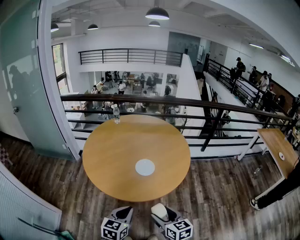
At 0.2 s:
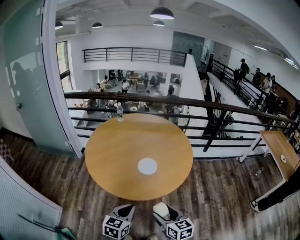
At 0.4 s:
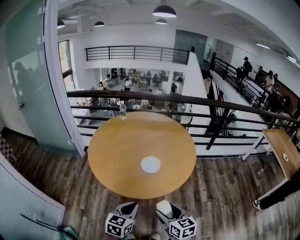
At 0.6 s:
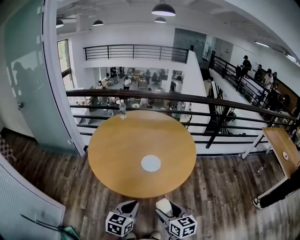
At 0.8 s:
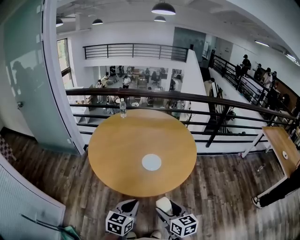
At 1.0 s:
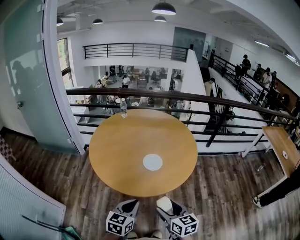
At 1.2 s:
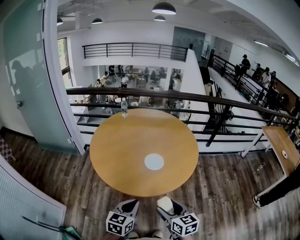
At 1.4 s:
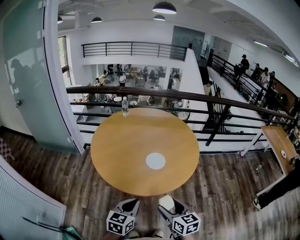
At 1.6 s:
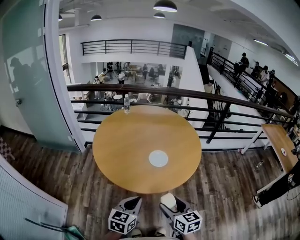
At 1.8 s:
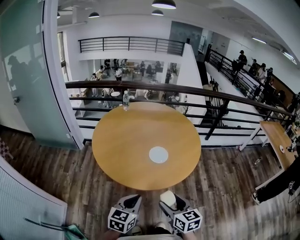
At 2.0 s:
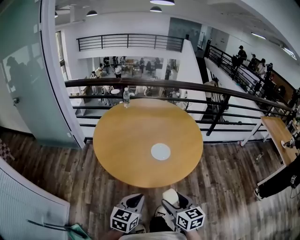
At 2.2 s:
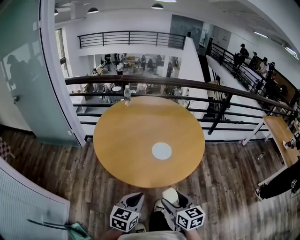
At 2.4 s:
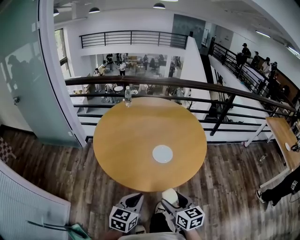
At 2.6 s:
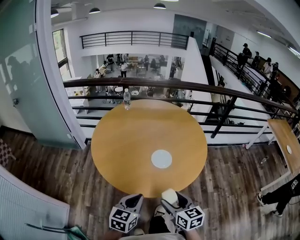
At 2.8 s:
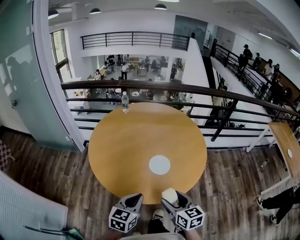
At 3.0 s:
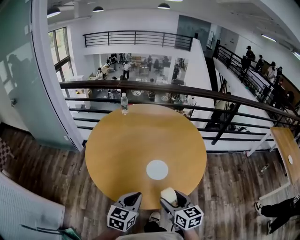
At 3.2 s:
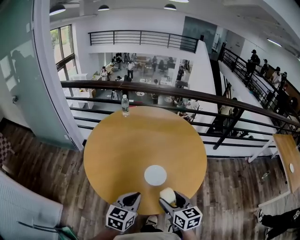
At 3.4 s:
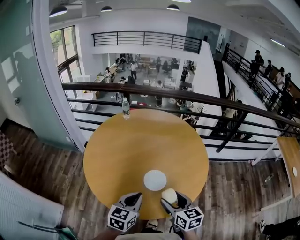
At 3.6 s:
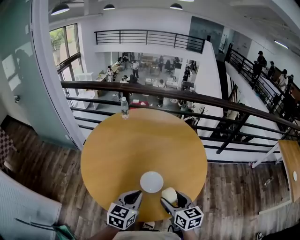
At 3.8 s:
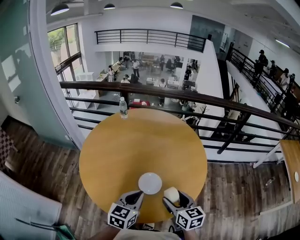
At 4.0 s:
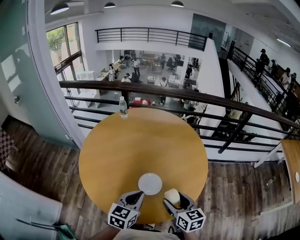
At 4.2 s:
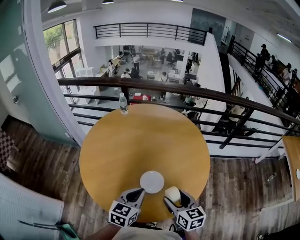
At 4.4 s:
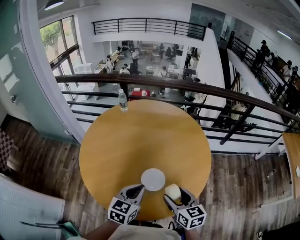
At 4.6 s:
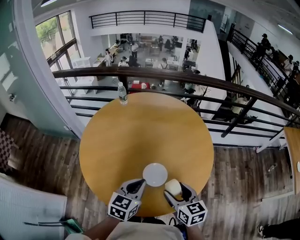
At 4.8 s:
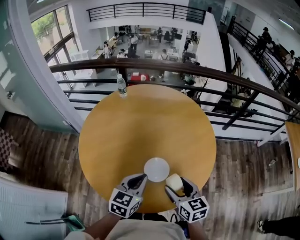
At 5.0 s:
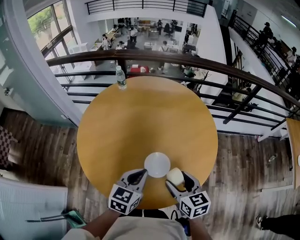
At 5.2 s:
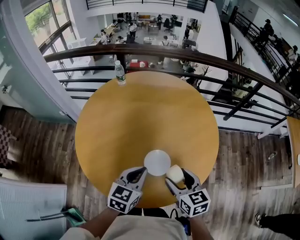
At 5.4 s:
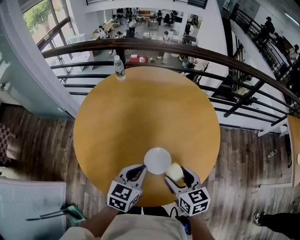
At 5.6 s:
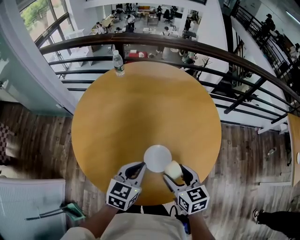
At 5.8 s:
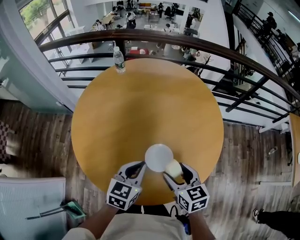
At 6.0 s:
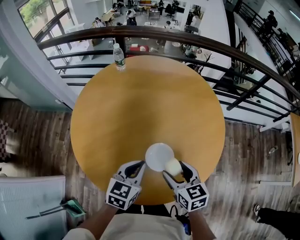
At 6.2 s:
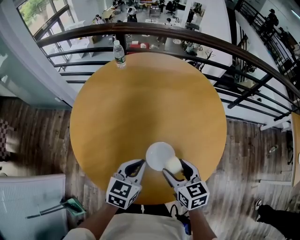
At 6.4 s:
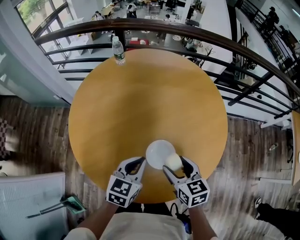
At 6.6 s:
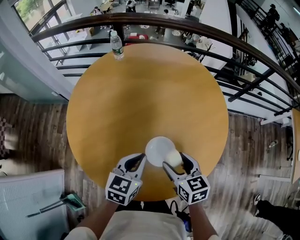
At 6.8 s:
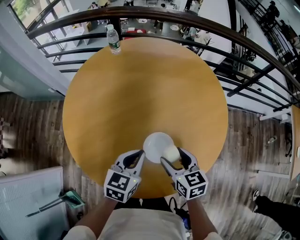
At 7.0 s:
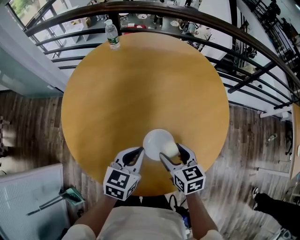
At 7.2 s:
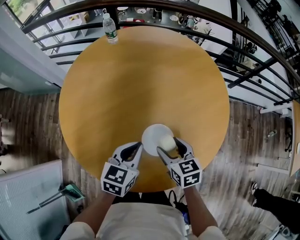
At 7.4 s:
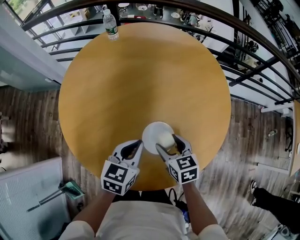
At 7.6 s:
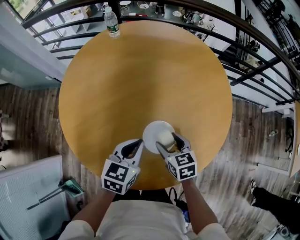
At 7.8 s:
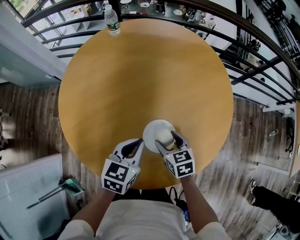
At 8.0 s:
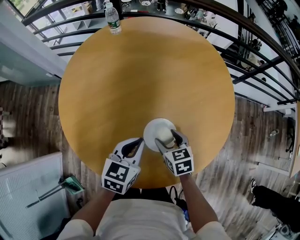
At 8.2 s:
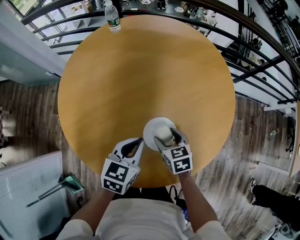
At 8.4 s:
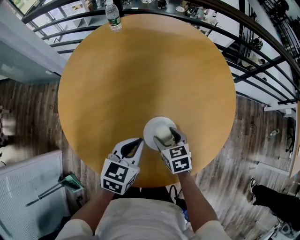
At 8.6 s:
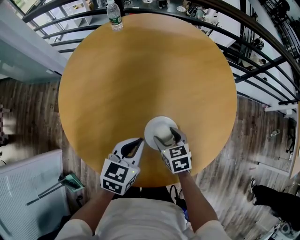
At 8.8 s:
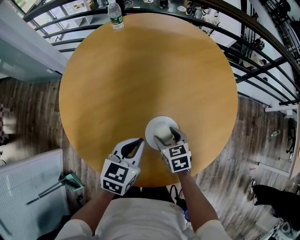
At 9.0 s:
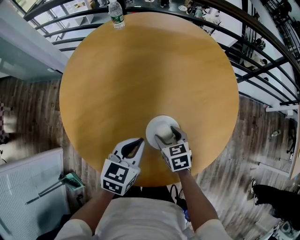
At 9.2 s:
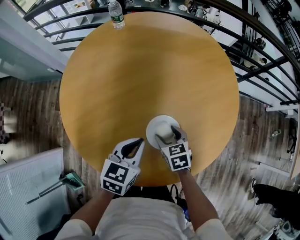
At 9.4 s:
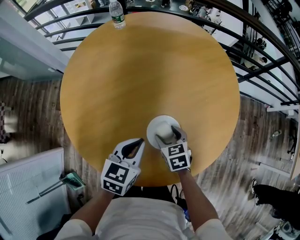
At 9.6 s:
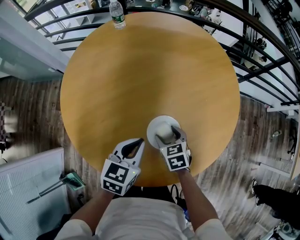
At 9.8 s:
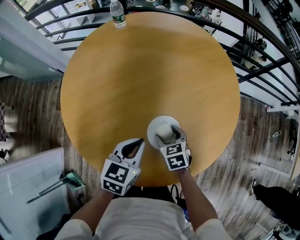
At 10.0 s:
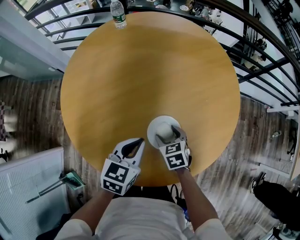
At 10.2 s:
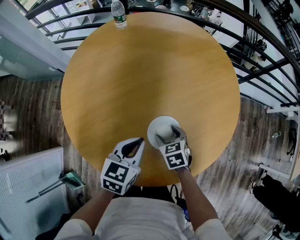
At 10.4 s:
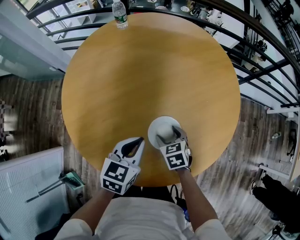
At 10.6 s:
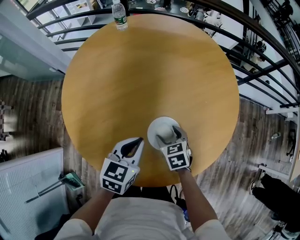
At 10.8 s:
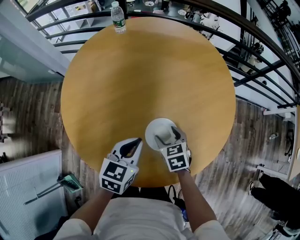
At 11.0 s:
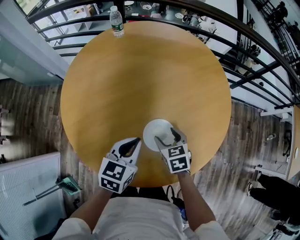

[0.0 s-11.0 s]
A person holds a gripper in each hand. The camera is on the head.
0.0 to 1.6 s: The grippers both shift to the left by some 5 cm.
1.6 to 3.2 s: Both grippers travel together forward, some 20 cm.
3.2 to 4.8 s: Both grippers move forward, roughly 10 cm.
4.8 to 6.2 s: The left gripper is displaced downward and forward by approximately 10 cm. Meanwhile the right gripper shifts some 10 cm forward and downward.
6.2 to 7.8 s: The left gripper moves downward, roughly 5 cm. The right gripper travels downward and forward by roughly 15 cm.
7.8 to 11.0 s: There are only small adjustments of the grippers.

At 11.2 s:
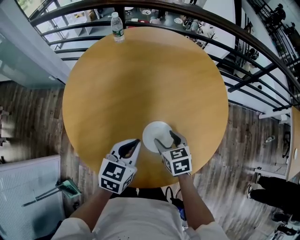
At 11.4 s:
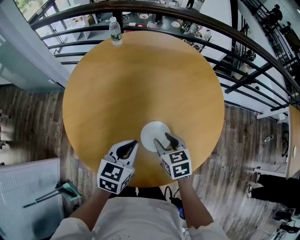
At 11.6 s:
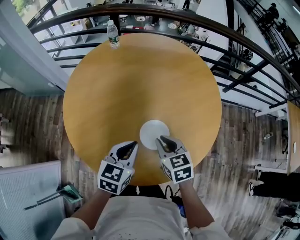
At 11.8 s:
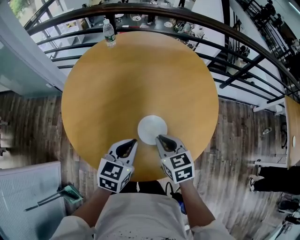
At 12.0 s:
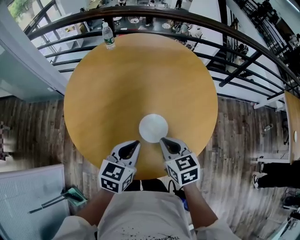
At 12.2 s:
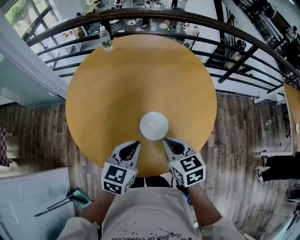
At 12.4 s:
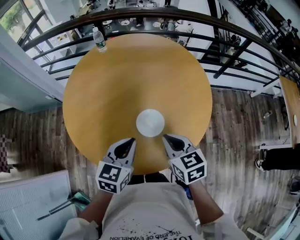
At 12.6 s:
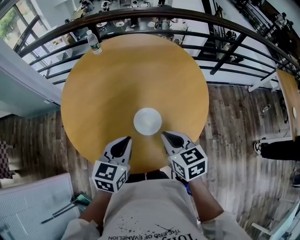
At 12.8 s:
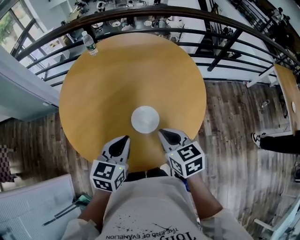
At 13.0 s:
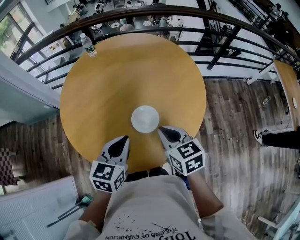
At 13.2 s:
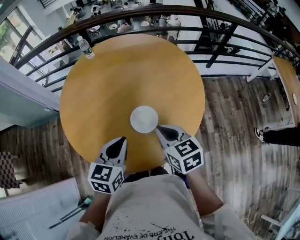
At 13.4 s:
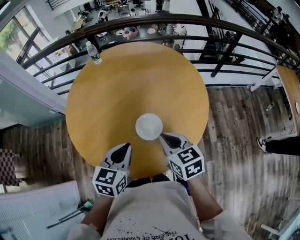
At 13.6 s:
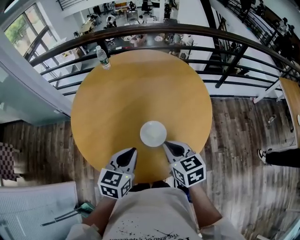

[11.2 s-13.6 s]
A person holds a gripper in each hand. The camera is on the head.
11.2 to 12.4 s: The right gripper moves upward and backward, some 20 cm, and closes its fingers. Meanwhile the left gripper moves backward and upward, some 10 cm.
12.4 to 13.6 s: The grippers make only small movements.

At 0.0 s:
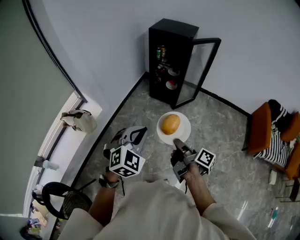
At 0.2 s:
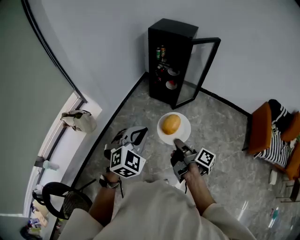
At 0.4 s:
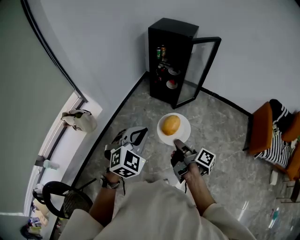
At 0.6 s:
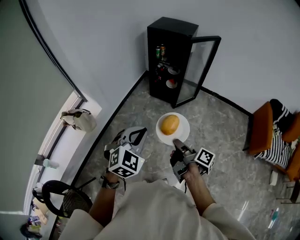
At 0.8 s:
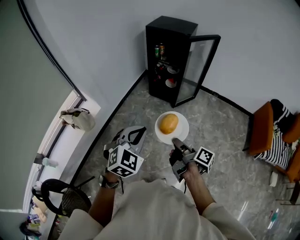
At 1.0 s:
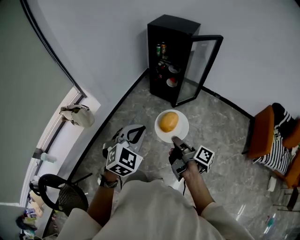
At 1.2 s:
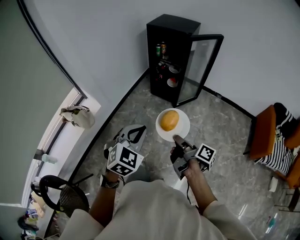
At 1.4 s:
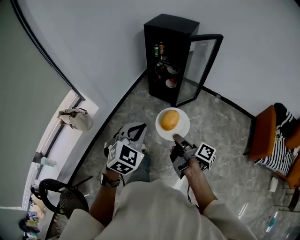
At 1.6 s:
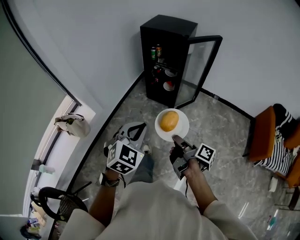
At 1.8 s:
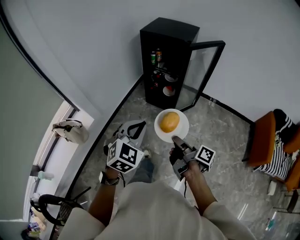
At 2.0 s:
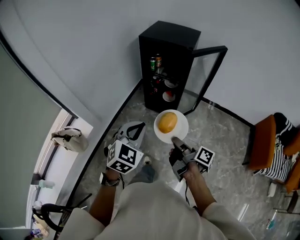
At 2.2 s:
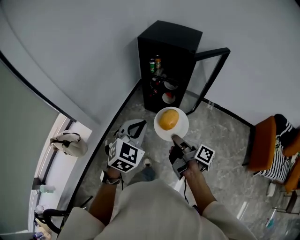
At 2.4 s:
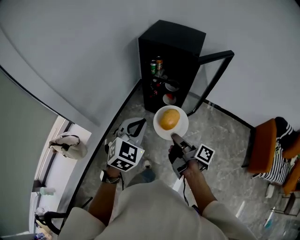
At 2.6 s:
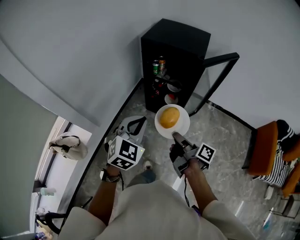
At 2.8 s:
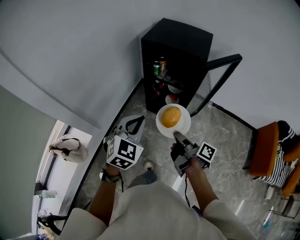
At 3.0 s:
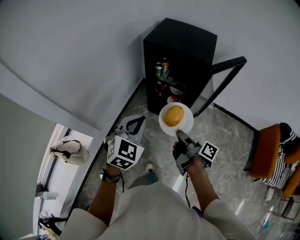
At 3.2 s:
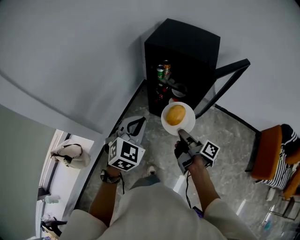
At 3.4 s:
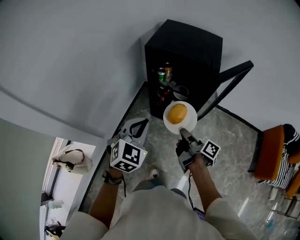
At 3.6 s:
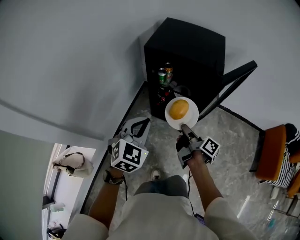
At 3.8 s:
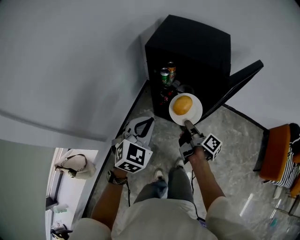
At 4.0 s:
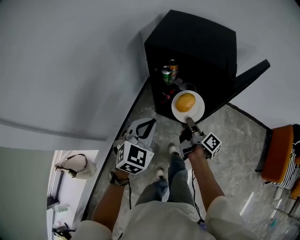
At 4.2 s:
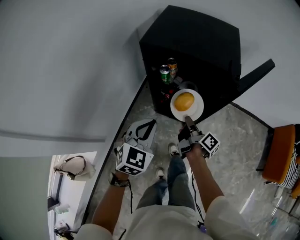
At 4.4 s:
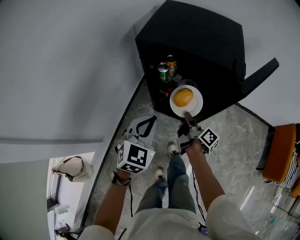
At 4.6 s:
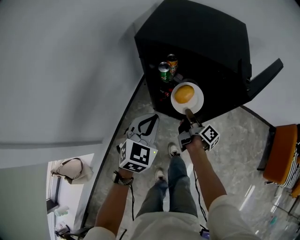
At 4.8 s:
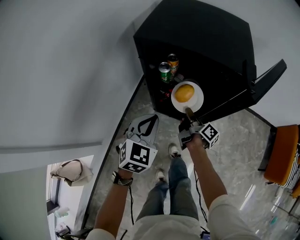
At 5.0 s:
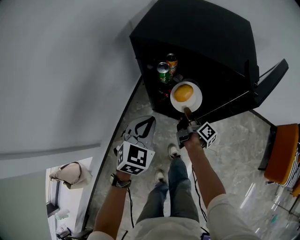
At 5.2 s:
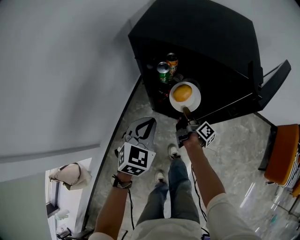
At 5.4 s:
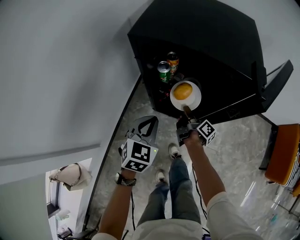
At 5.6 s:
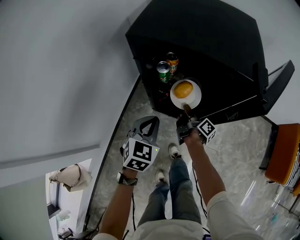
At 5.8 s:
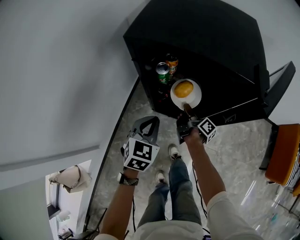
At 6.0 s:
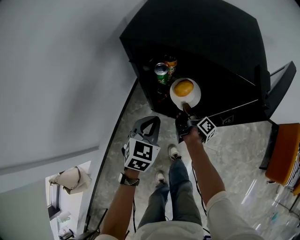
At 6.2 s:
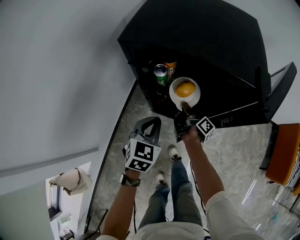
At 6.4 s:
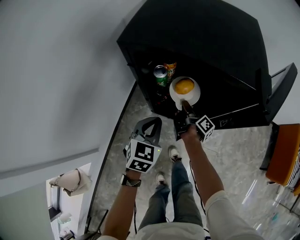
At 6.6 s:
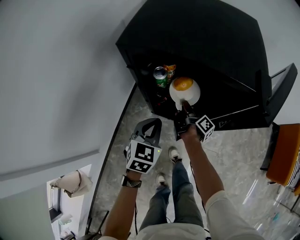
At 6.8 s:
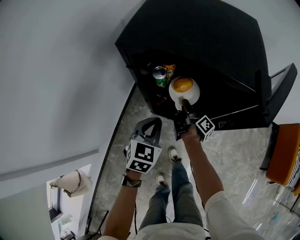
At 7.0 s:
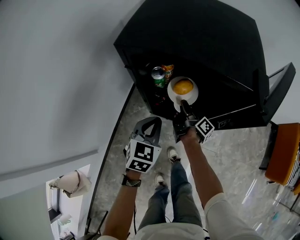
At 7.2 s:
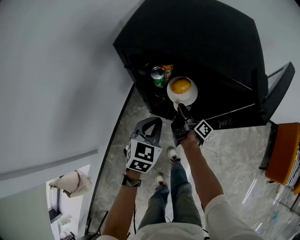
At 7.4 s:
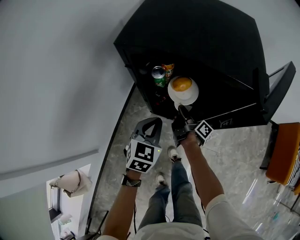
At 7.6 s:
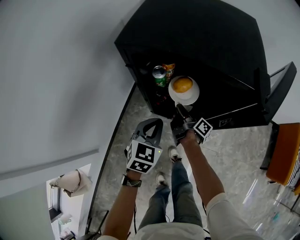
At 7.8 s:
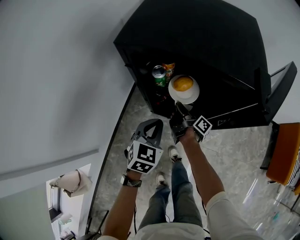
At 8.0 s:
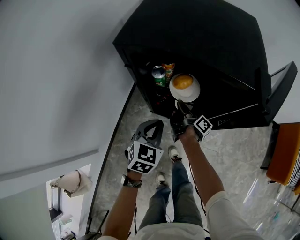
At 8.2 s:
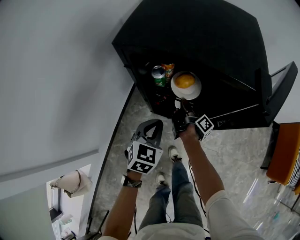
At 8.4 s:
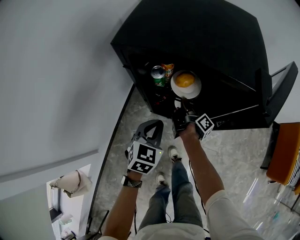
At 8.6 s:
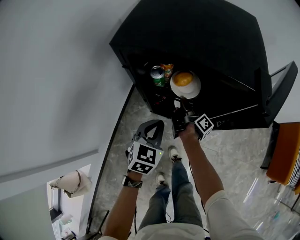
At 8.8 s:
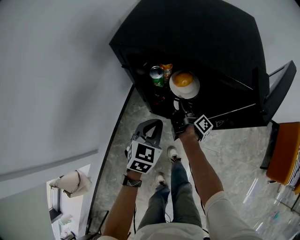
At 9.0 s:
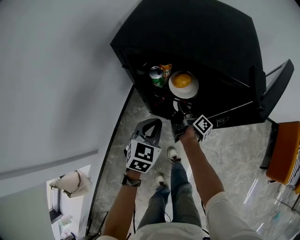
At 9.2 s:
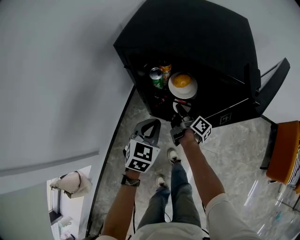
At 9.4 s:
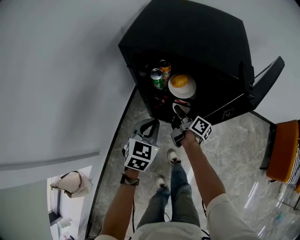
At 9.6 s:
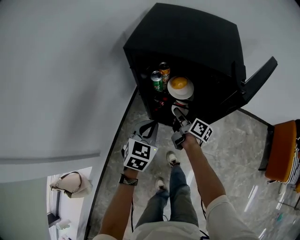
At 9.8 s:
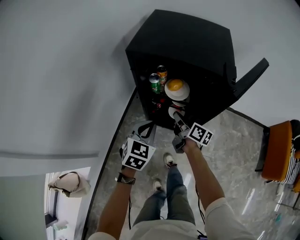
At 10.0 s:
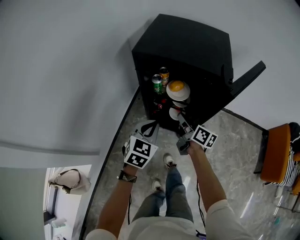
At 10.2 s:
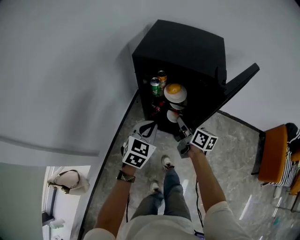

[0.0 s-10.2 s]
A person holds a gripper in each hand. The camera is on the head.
0.0 to 1.4 s: The left gripper shifts by about 10 cm.
1.4 to 3.0 s: The left gripper moves about 40 cm.
3.0 to 4.4 s: The left gripper ends up approximately 25 cm from where it was.
4.4 to 5.8 s: The left gripper goes some 10 cm downward.
8.8 to 10.2 s: The left gripper goes roughly 10 cm upward.
